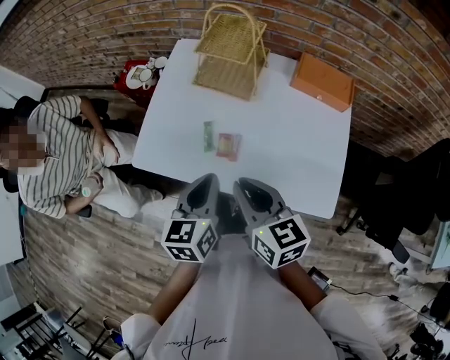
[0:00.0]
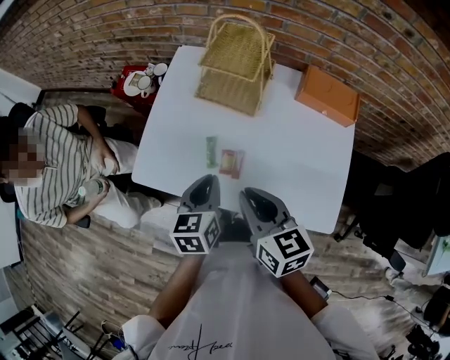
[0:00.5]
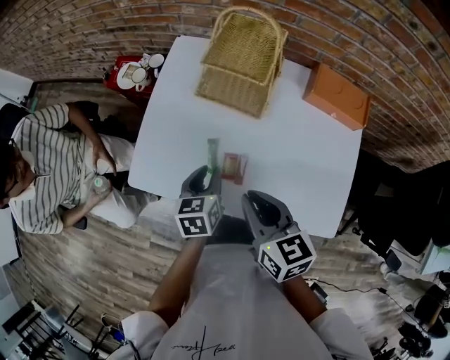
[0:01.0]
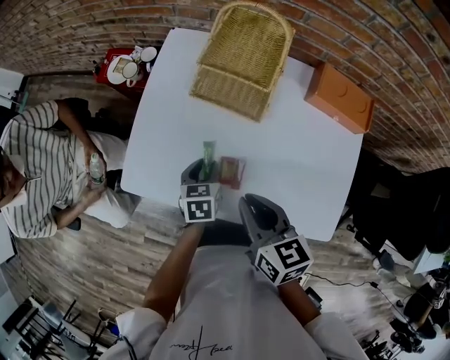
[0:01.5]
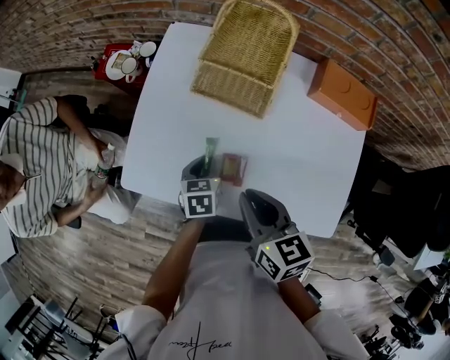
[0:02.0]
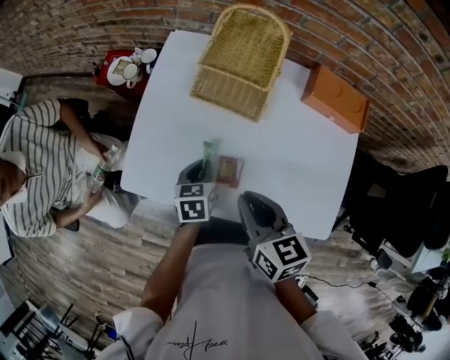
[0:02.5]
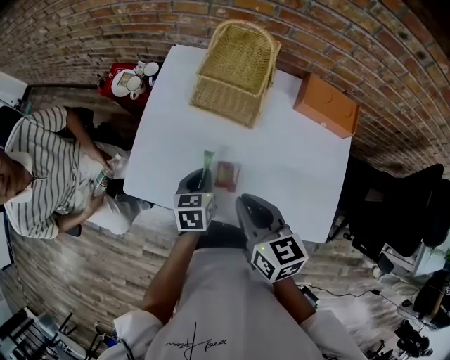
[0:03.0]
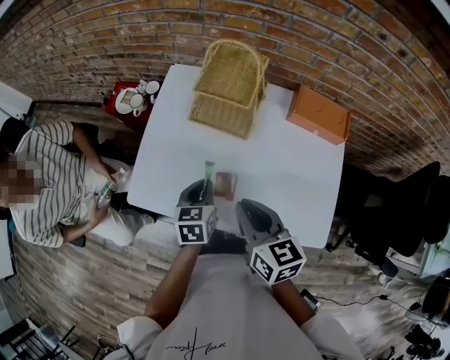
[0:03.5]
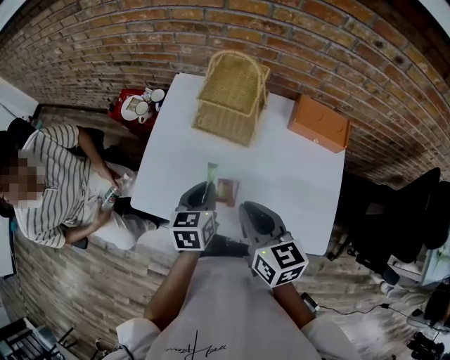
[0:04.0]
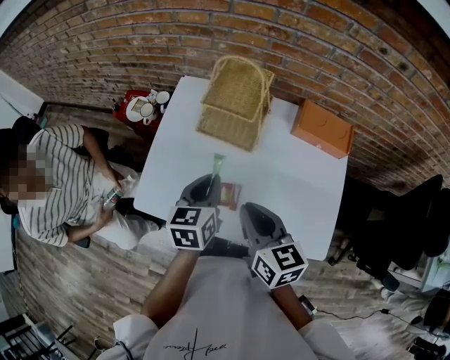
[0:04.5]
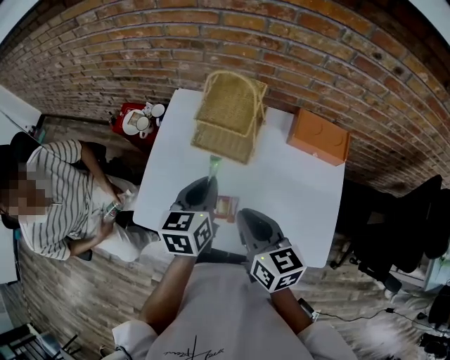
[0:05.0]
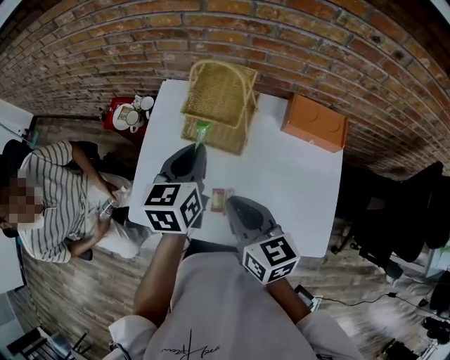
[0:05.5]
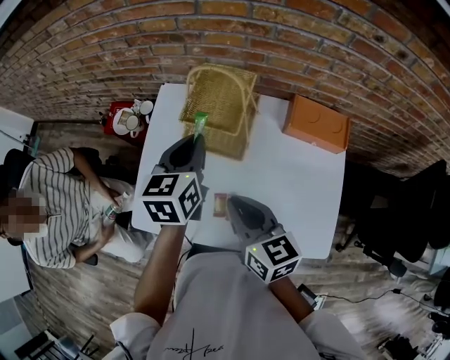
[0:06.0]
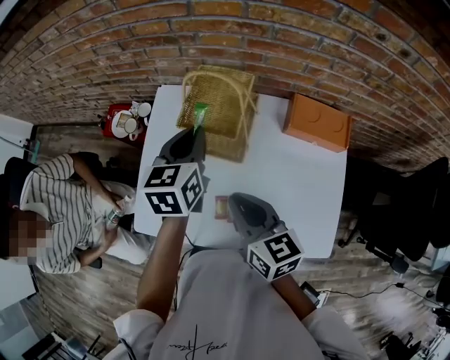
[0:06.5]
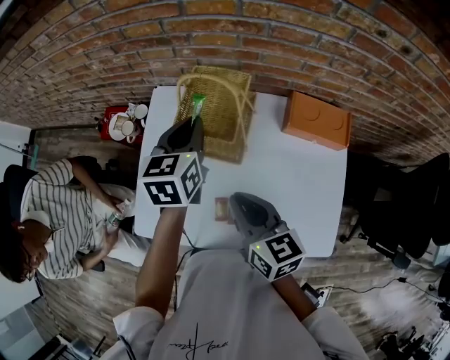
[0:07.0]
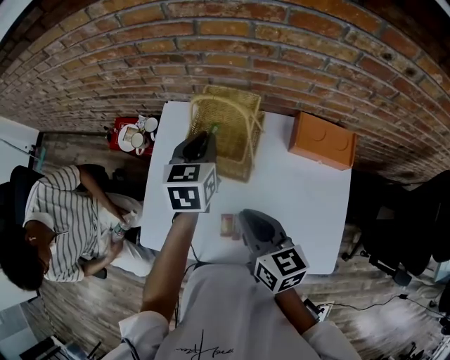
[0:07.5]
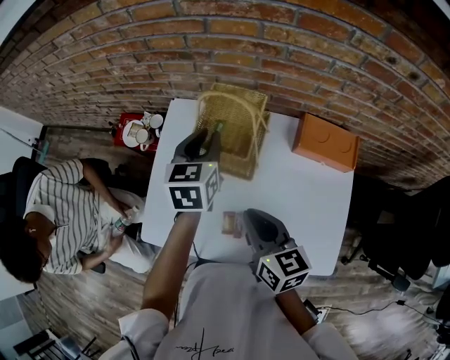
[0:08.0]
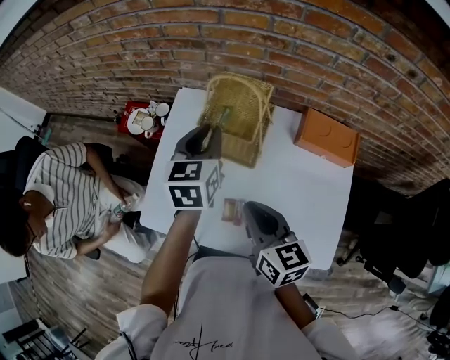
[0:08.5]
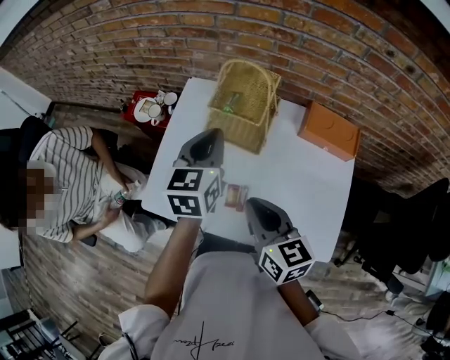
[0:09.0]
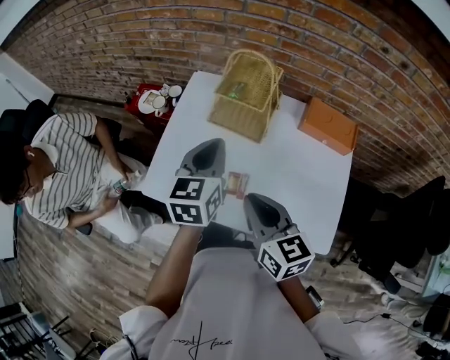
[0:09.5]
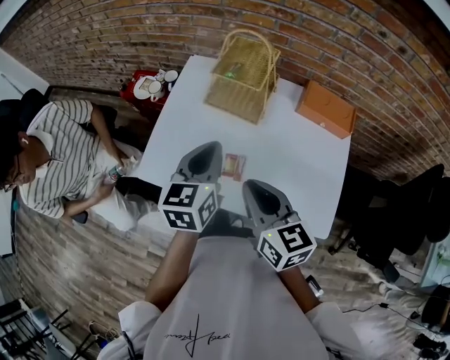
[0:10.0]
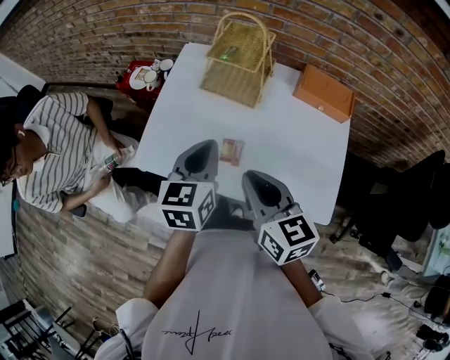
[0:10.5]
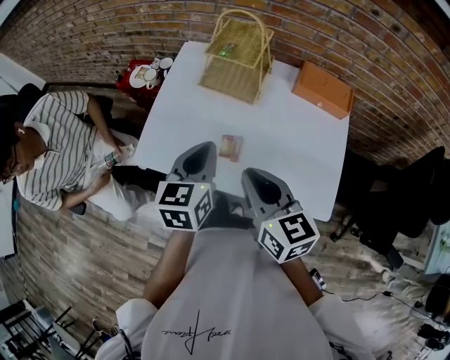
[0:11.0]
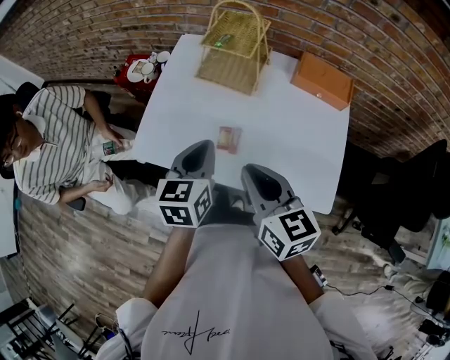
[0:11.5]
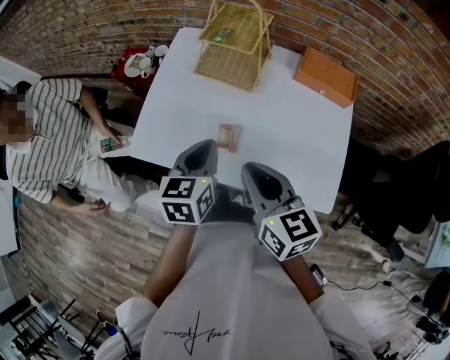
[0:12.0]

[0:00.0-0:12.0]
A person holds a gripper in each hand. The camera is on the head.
0:00.0 to 0:02.0: The right gripper is displaced forward and downward by some 10 cm; the left gripper shifts approximately 25 cm downward and forward, and turns by about 30 degrees.
0:02.0 to 0:04.0: The right gripper moves upward, some 5 cm. Meanwhile the left gripper heads upward, covering approximately 15 cm.
0:04.0 to 0:06.0: The left gripper is displaced forward and upward by about 20 cm. The right gripper travels forward by some 5 cm.
0:06.0 to 0:08.0: The left gripper heads forward, covering roughly 5 cm.
0:08.0 to 0:10.0: The right gripper travels backward by about 10 cm. Meanwhile the left gripper is displaced backward by roughly 20 cm.
0:10.0 to 0:12.0: The left gripper travels downward and backward by roughly 10 cm.

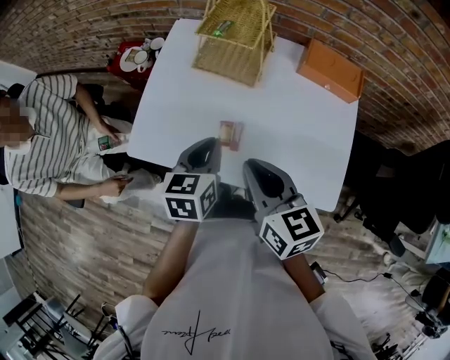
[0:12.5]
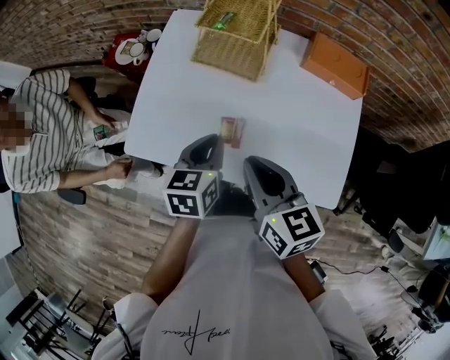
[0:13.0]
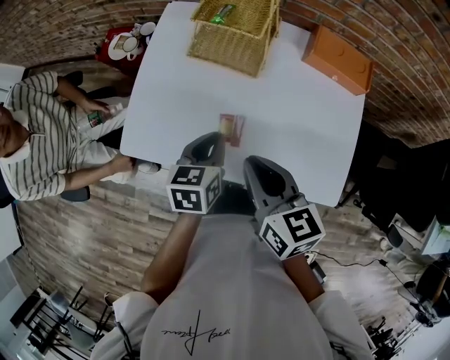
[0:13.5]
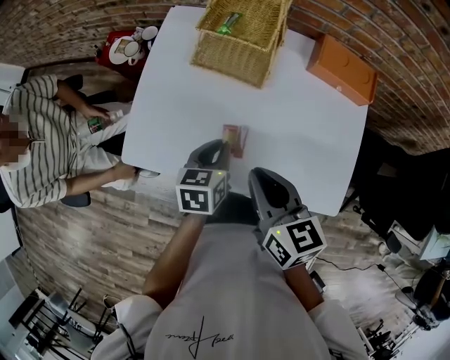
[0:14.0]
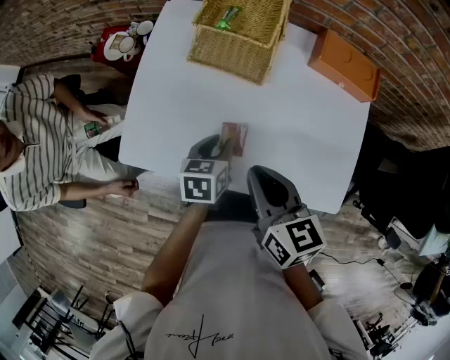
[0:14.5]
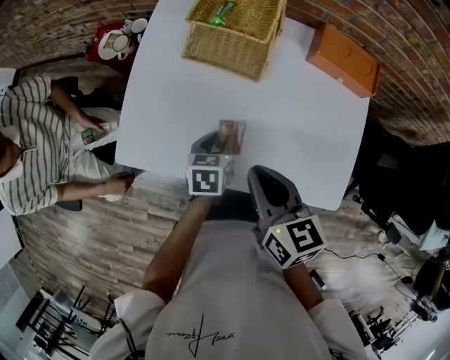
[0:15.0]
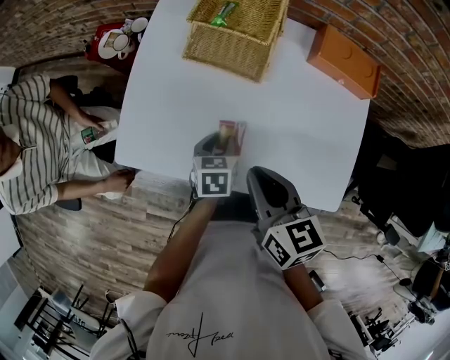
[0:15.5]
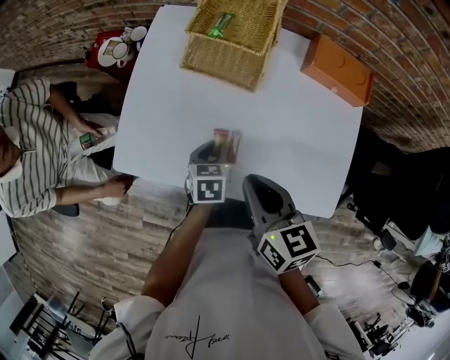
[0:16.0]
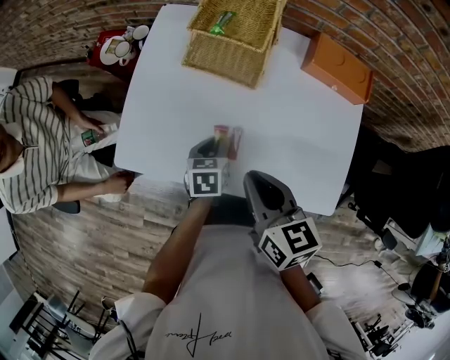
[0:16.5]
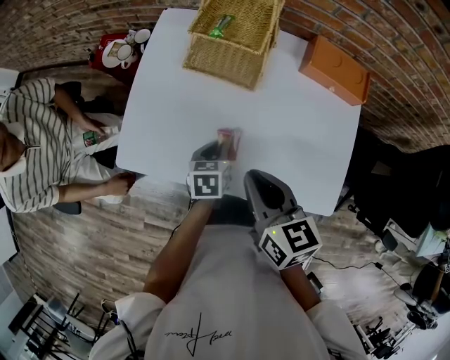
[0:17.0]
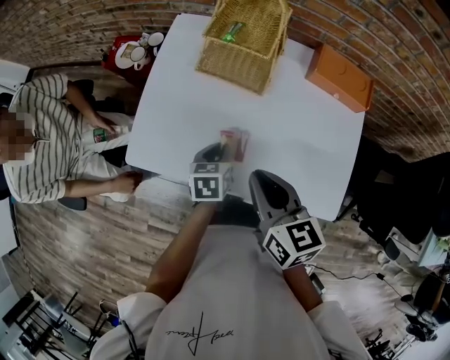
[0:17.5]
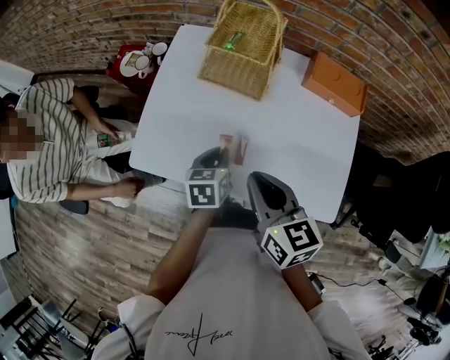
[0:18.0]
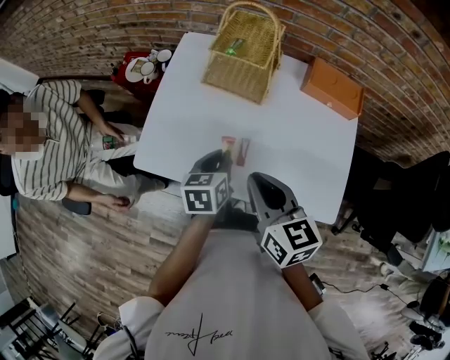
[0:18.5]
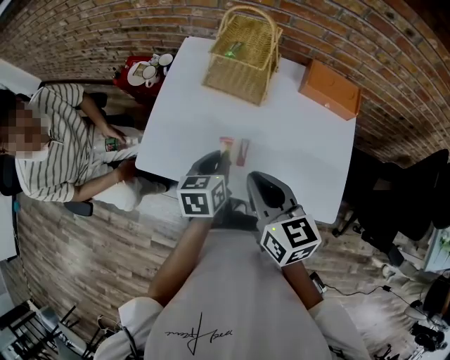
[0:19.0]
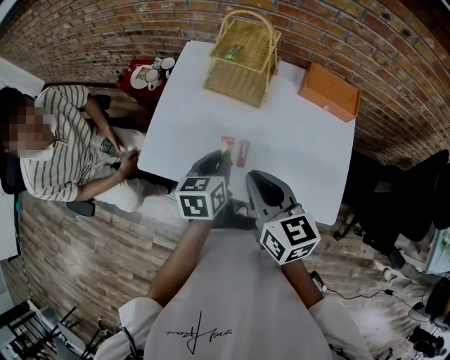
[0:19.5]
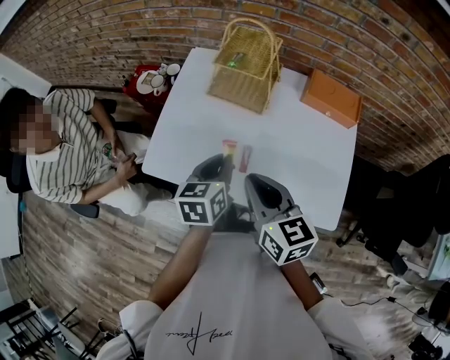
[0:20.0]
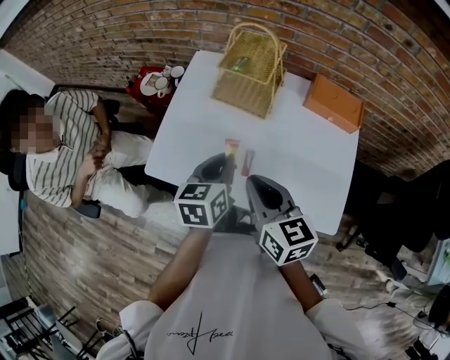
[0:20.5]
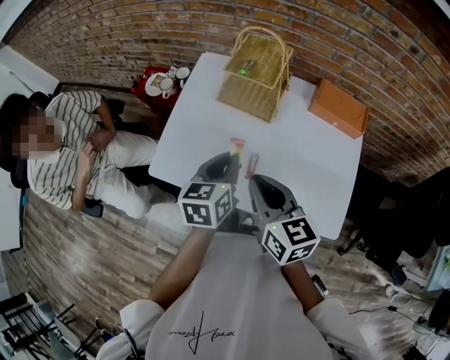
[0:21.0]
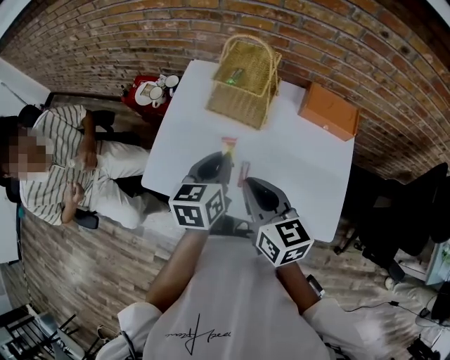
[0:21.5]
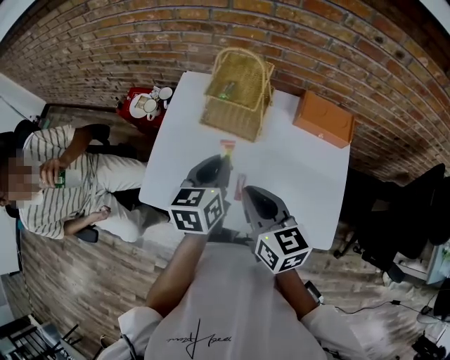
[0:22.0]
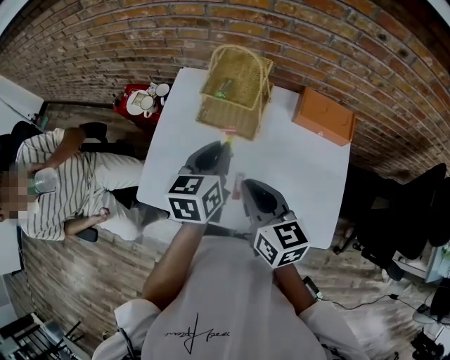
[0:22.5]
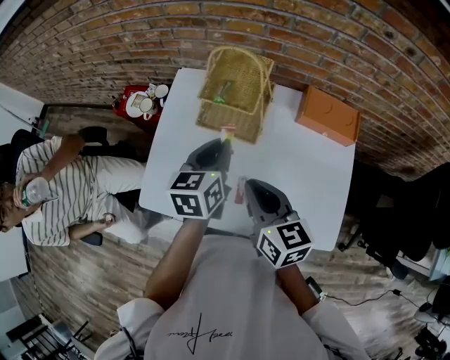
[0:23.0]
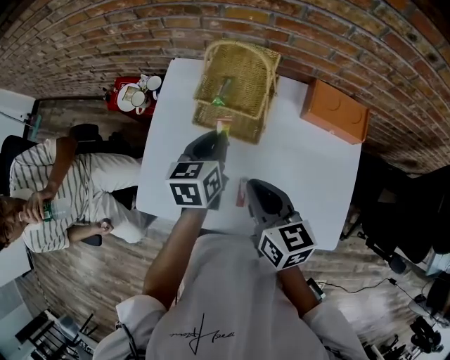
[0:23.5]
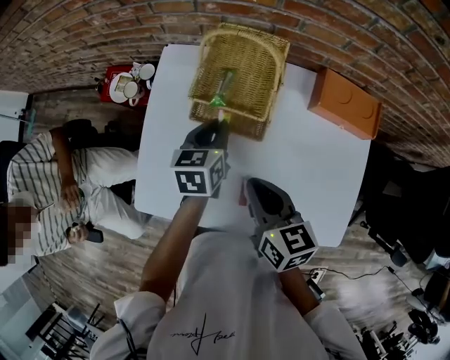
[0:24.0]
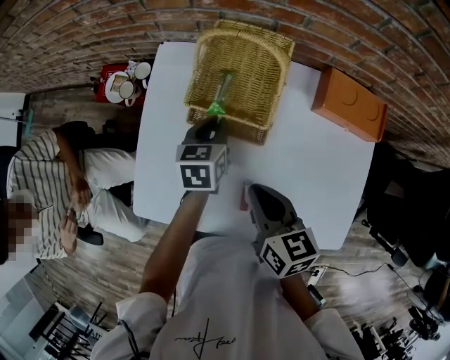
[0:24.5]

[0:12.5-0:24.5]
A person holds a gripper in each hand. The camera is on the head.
0:12.5 to 0:14.5: The left gripper travels downward by approximately 10 cm, and opens its fingers.
0:14.5 to 0:16.5: The grippers stay close to where they were, moving slightly.
0:16.5 to 0:18.5: The left gripper travels upward by roughly 10 cm.
0:18.5 to 0:20.5: The left gripper is displaced upward by roughly 10 cm.
0:20.5 to 0:22.5: The right gripper shifts some 5 cm forward; the left gripper goes about 10 cm forward.
0:22.5 to 0:24.5: The right gripper heads downward and forward, covering some 10 cm. The left gripper is displaced downward and forward by some 20 cm.

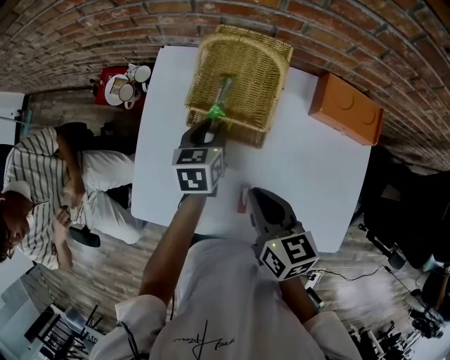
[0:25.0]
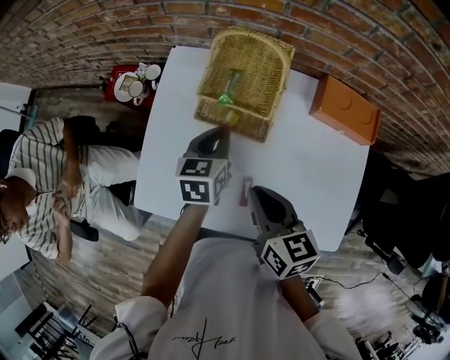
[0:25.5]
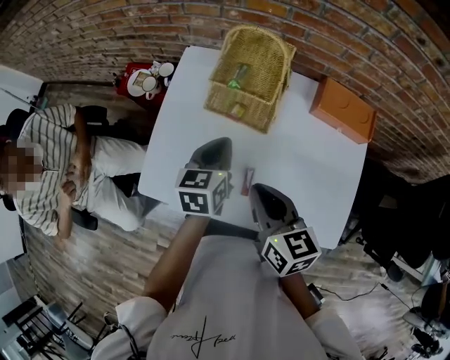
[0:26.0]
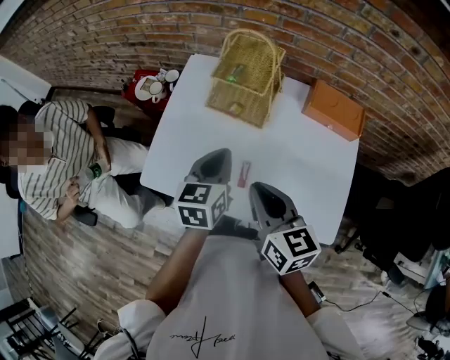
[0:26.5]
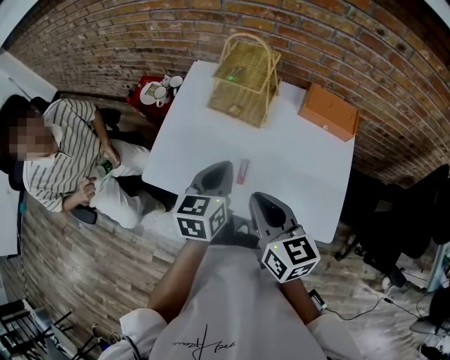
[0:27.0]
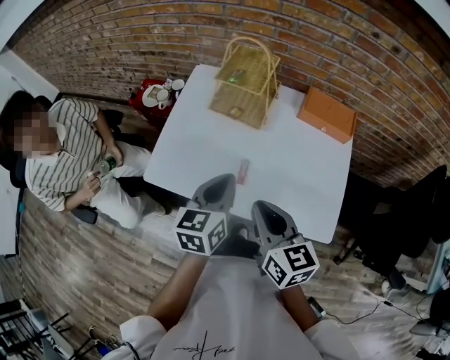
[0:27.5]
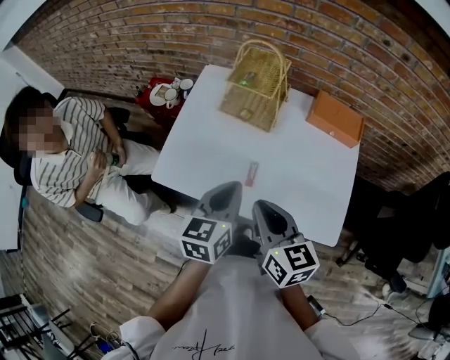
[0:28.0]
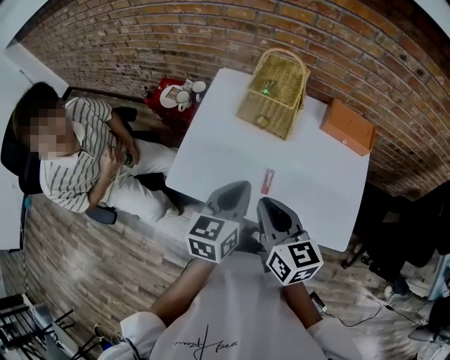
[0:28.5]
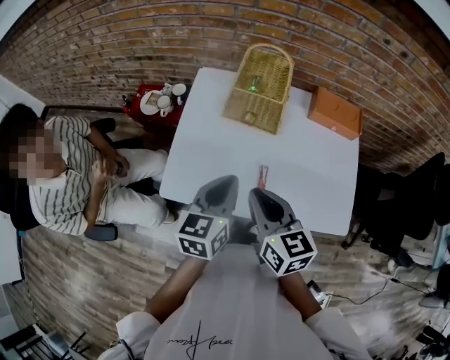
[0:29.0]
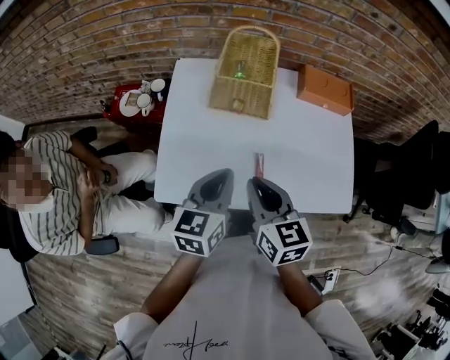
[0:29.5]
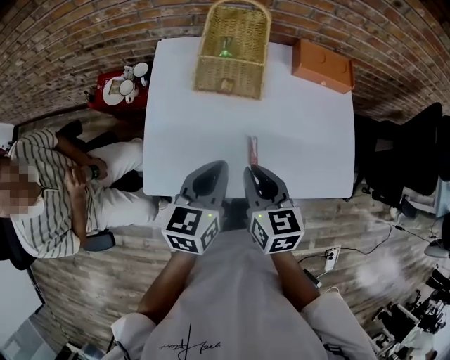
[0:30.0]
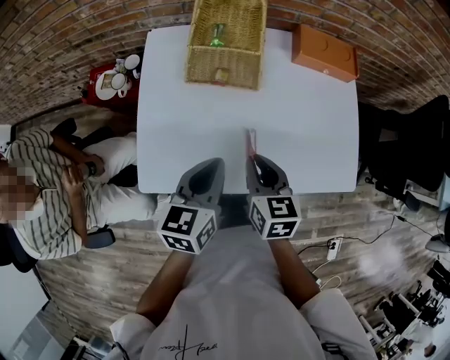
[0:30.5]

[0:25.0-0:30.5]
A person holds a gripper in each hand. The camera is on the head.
0:25.0 to 0:27.0: The right gripper goes approximately 15 cm backward and upward. The left gripper goes about 25 cm backward and upward, and closes.
0:27.0 to 0:28.5: The left gripper shifts by approximately 5 cm; the right gripper travels to the left by roughly 5 cm.
0:28.5 to 0:30.5: The left gripper is displaced downward by approximately 5 cm. Meanwhile the right gripper heads downward, covering about 15 cm, and rotates approximately 30 degrees.
